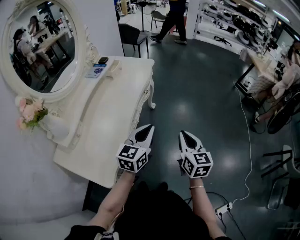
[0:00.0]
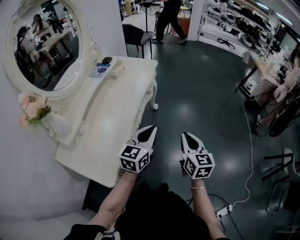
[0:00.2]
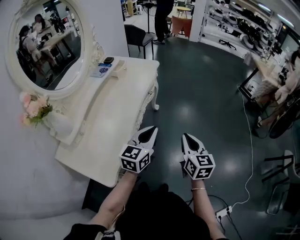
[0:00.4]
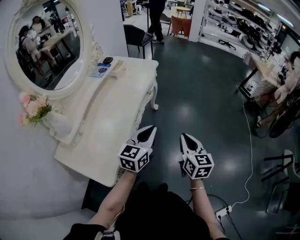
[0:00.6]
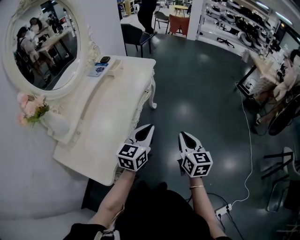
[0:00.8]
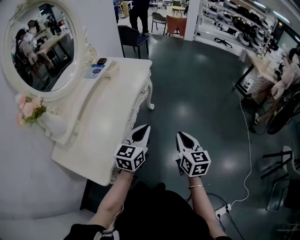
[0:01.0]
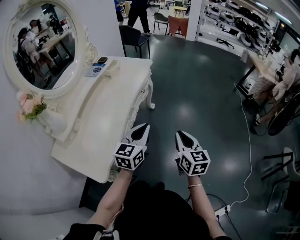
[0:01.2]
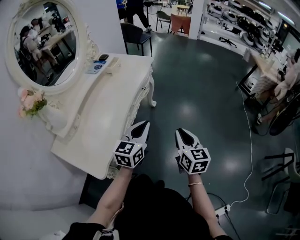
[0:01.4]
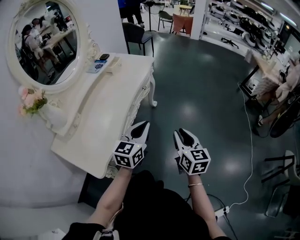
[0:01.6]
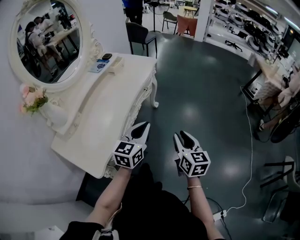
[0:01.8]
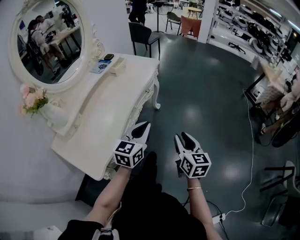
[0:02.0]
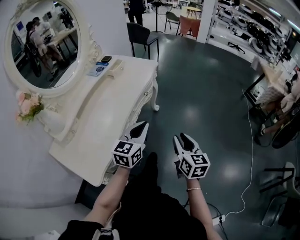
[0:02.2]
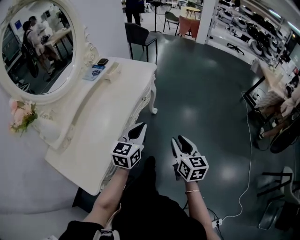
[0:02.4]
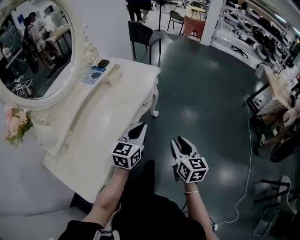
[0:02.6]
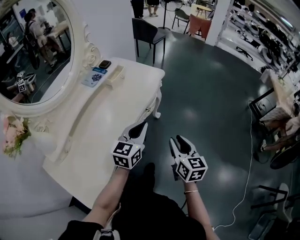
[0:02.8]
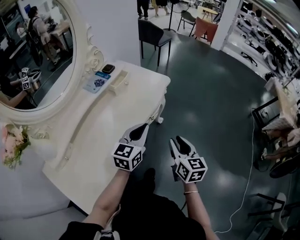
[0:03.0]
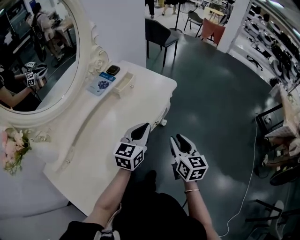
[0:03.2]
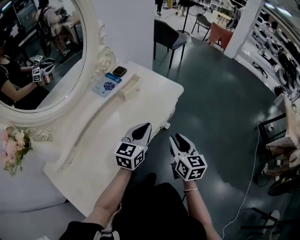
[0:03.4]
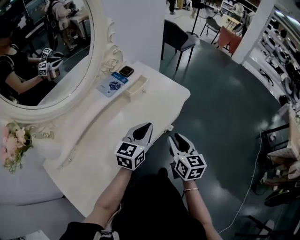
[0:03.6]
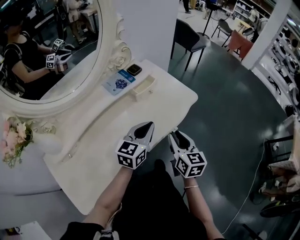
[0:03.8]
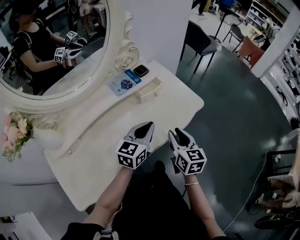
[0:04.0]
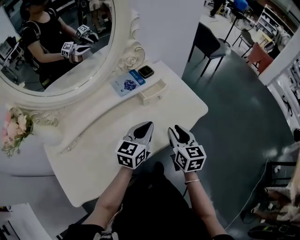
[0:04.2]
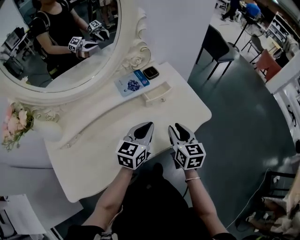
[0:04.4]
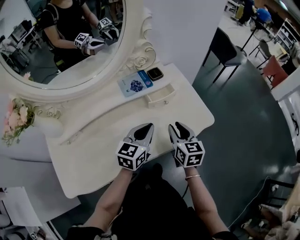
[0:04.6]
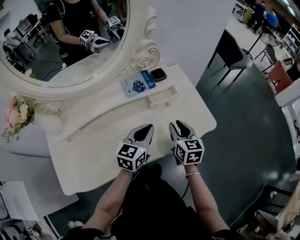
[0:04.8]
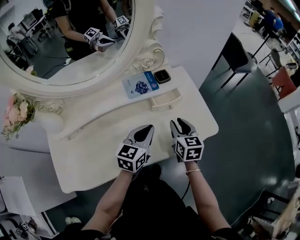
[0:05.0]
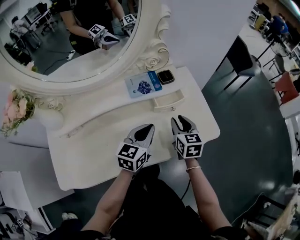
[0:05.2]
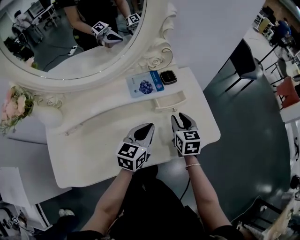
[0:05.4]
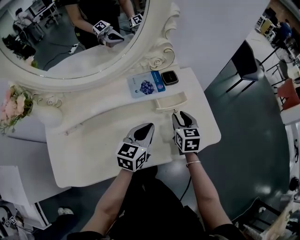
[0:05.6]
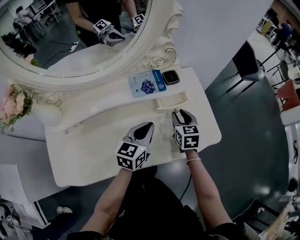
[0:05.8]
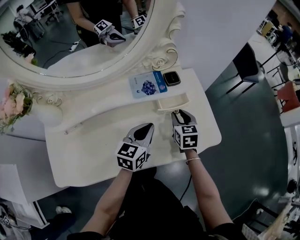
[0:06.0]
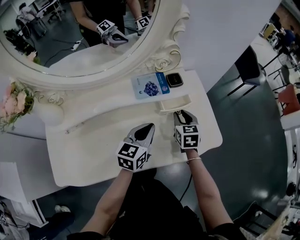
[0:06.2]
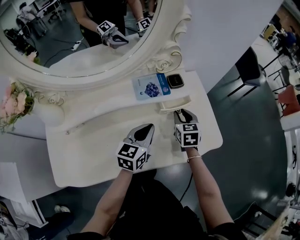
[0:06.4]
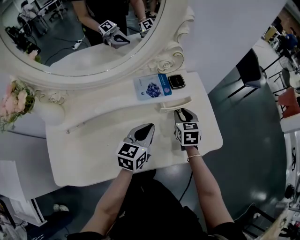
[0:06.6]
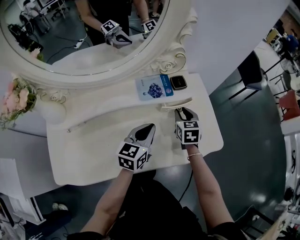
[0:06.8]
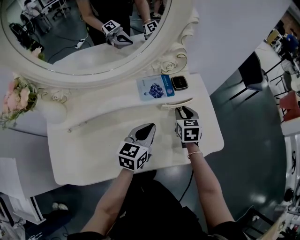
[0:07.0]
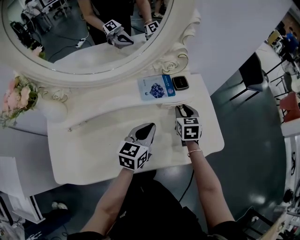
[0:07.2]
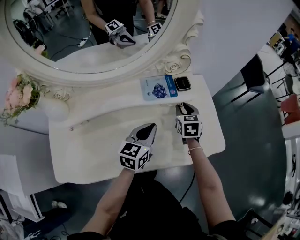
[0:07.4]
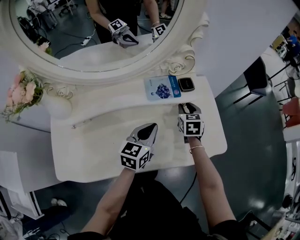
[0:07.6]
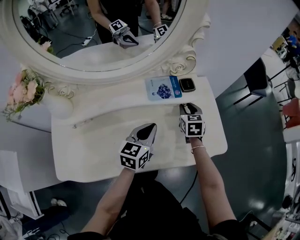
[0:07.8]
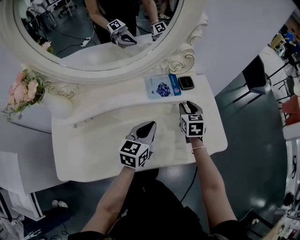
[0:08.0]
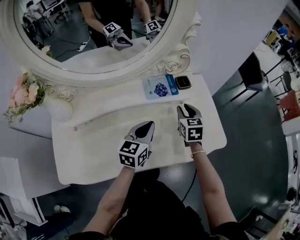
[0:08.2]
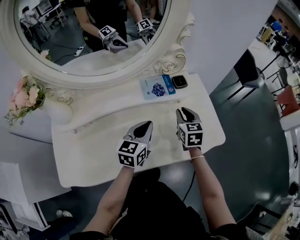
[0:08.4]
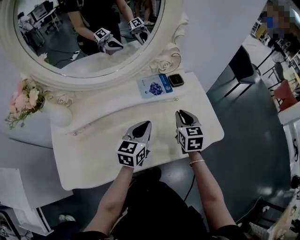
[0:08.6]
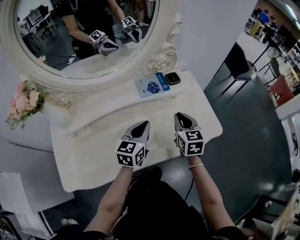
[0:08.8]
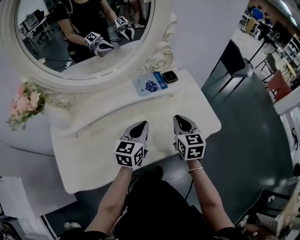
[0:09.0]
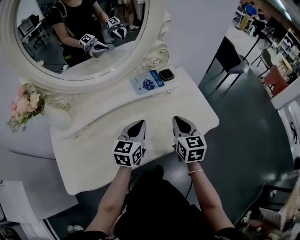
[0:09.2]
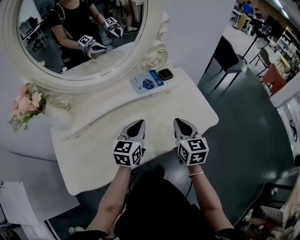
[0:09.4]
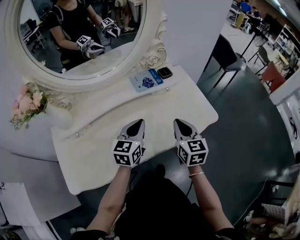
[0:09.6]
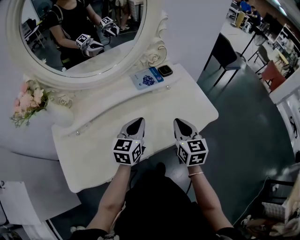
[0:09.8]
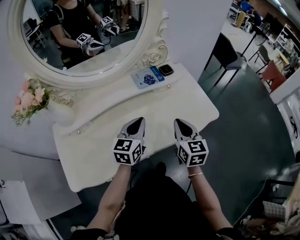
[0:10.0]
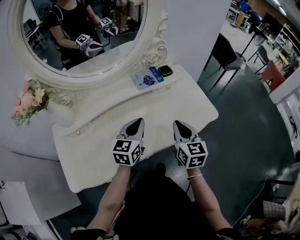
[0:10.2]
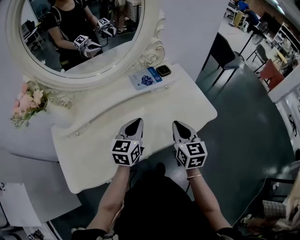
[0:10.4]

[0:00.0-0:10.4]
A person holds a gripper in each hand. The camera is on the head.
0:00.0 to 0:01.4: The grippers stay close to where they were, moving slightly.
0:01.4 to 0:03.0: The grippers both shift forward by about 25 cm. The right gripper opens its fingers.
0:03.0 to 0:04.4: The left gripper moves roughly 20 cm, and turns by some 30 degrees, while the right gripper changes place by about 30 cm, and changes its angle by some 30 degrees.
0:04.4 to 0:06.0: The left gripper moves forward, some 5 cm; the right gripper moves forward and downward, about 15 cm, and rotates roughly 20 degrees.
0:06.0 to 0:07.4: The right gripper moves forward, approximately 5 cm.
0:07.4 to 0:09.0: The right gripper goes approximately 15 cm backward and upward; the left gripper ends up about 5 cm from where it was.
0:09.0 to 0:10.4: The right gripper goes approximately 10 cm backward.

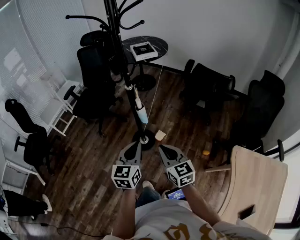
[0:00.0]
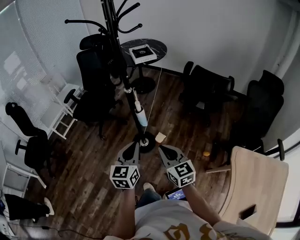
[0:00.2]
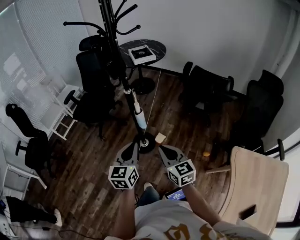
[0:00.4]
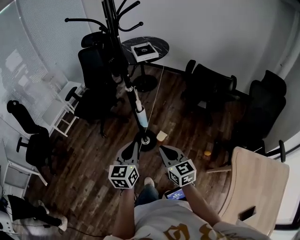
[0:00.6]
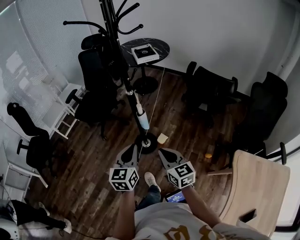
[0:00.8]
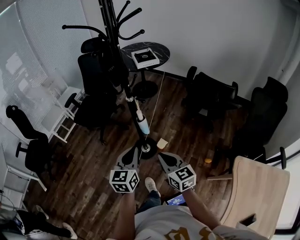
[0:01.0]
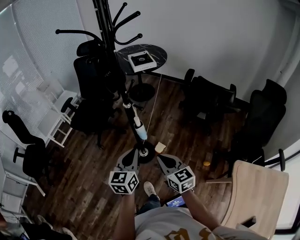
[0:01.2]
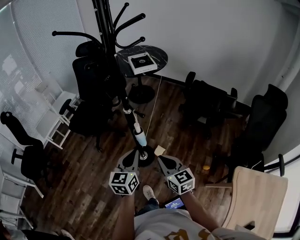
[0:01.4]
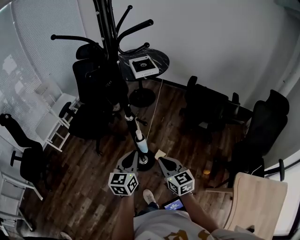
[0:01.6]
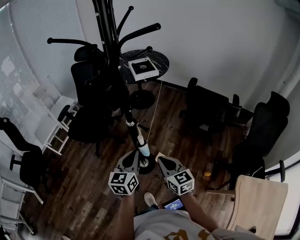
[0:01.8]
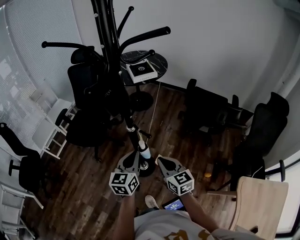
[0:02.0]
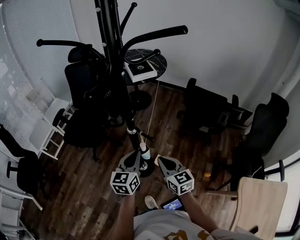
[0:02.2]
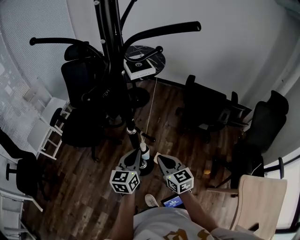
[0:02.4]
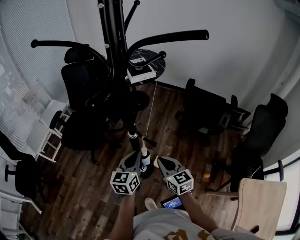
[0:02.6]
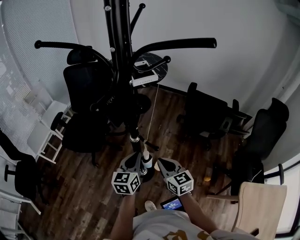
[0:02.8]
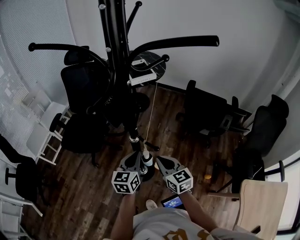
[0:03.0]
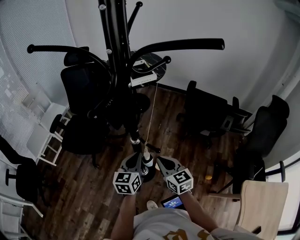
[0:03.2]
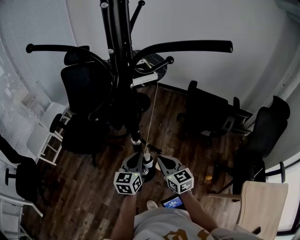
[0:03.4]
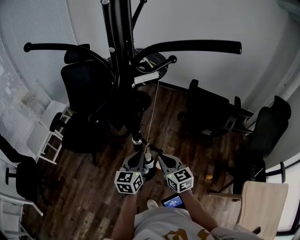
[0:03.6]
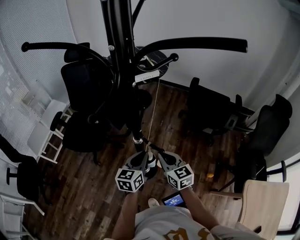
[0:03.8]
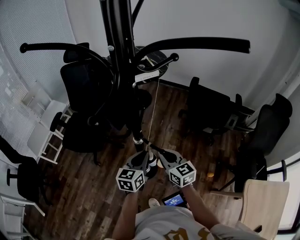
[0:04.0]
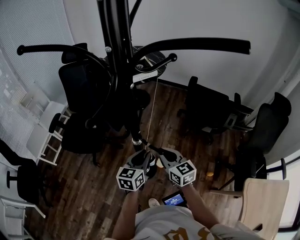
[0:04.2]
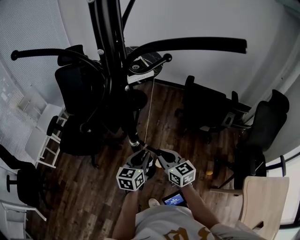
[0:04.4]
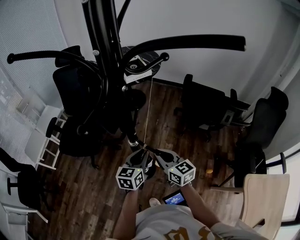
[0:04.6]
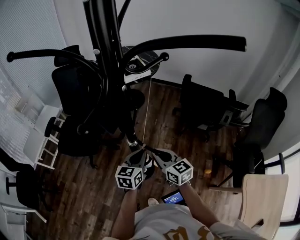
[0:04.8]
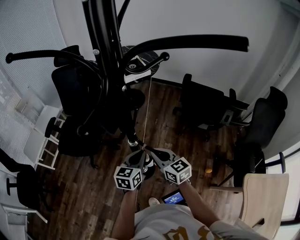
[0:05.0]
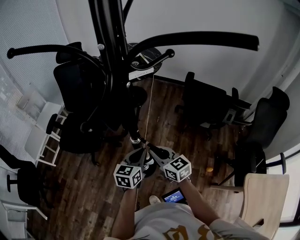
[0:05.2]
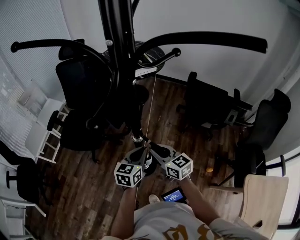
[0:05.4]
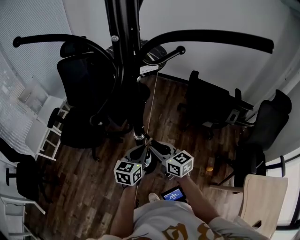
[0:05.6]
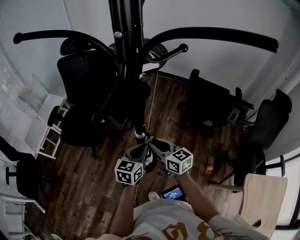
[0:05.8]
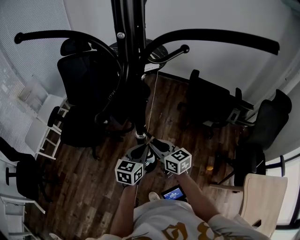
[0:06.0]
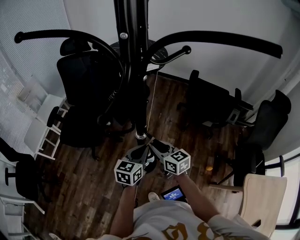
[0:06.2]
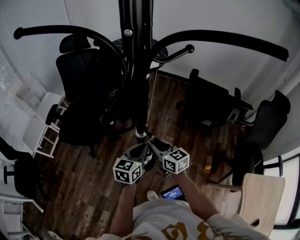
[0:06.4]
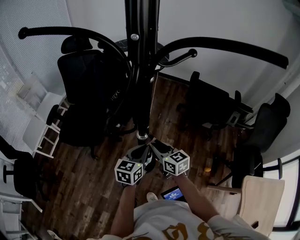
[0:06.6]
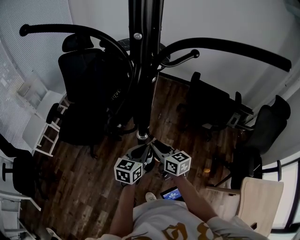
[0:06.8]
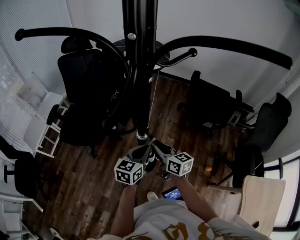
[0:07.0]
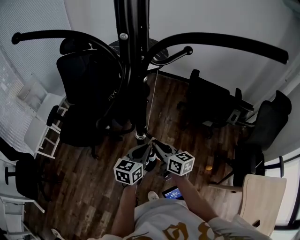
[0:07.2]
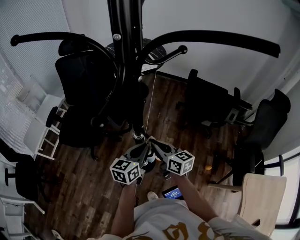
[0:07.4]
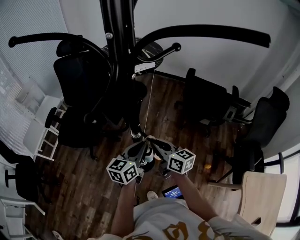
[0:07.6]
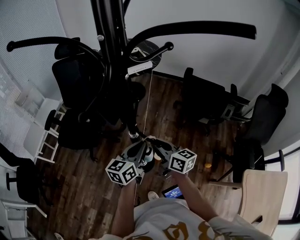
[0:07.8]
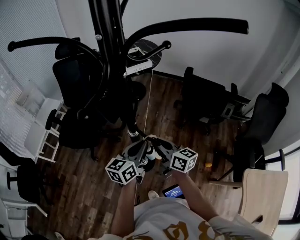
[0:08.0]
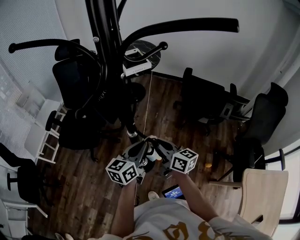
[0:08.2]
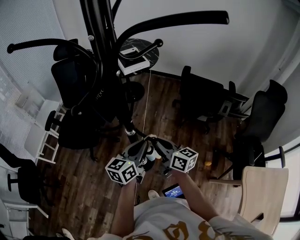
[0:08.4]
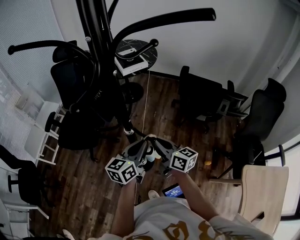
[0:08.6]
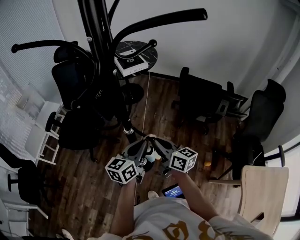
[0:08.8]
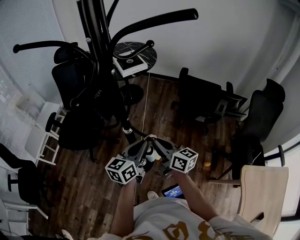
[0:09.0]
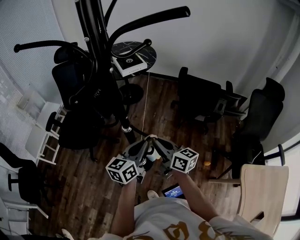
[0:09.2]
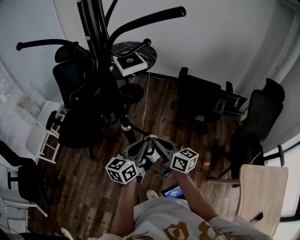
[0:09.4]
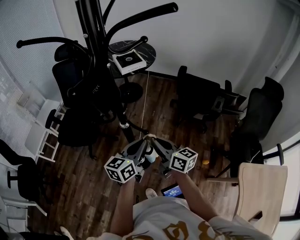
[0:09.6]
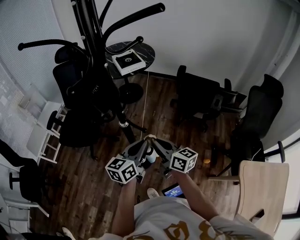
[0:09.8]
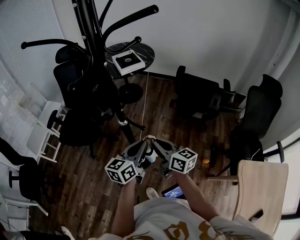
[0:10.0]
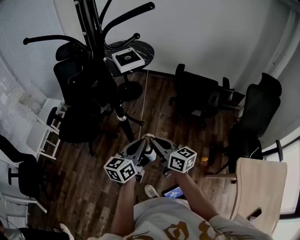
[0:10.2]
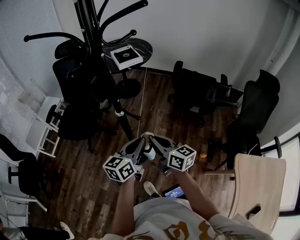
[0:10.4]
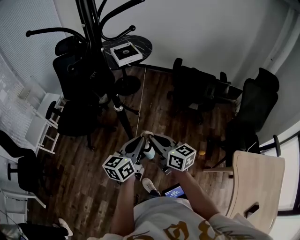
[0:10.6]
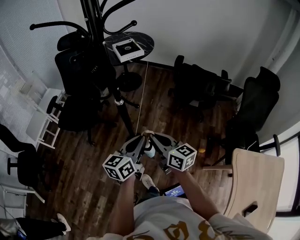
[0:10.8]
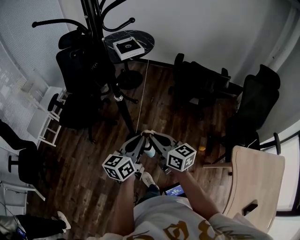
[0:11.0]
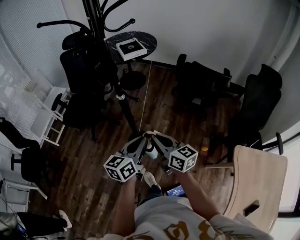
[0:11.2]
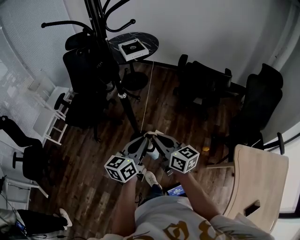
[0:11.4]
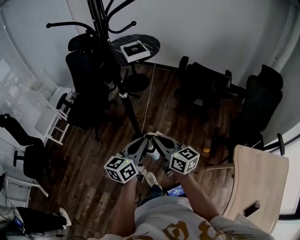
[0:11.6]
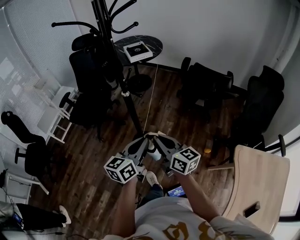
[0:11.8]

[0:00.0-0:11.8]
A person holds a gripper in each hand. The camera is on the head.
0:00.0 to 0:01.4: The two grippers go approximately 10 cm forward.
0:01.4 to 0:03.0: Both grippers travel together forward, roughly 20 cm.
0:03.0 to 0:04.4: The left gripper ends up about 5 cm from where it was.
0:04.4 to 0:06.0: The right gripper goes about 5 cm to the left.
0:06.0 to 0:07.4: There are only small adjustments of the grippers.
0:07.4 to 0:08.8: The right gripper moves approximately 5 cm; the left gripper shifts by roughly 5 cm.
0:08.8 to 0:10.4: The grippers both shift backward by roughly 10 cm.
0:10.4 to 0:11.8: Both grippers move backward, roughly 15 cm.

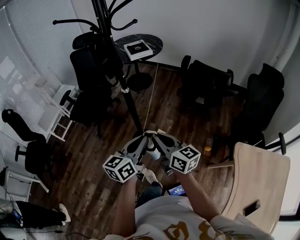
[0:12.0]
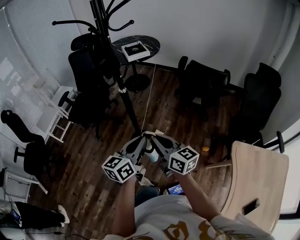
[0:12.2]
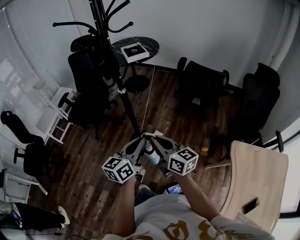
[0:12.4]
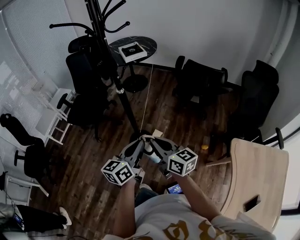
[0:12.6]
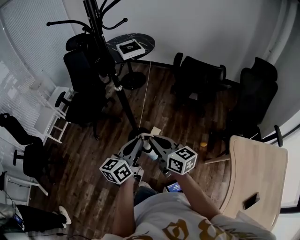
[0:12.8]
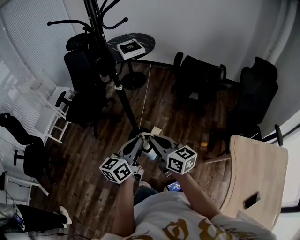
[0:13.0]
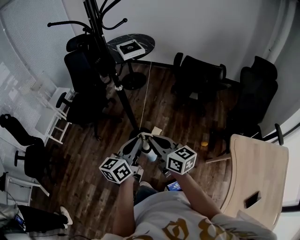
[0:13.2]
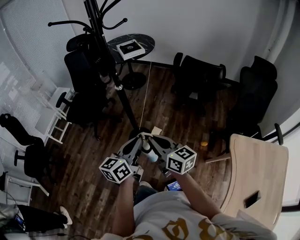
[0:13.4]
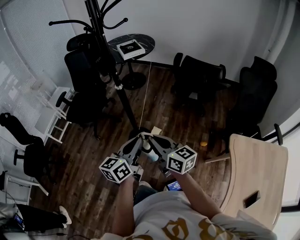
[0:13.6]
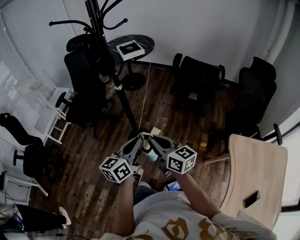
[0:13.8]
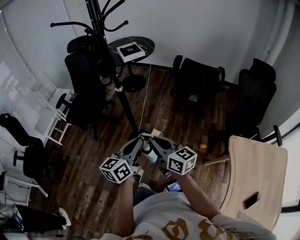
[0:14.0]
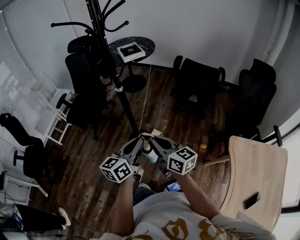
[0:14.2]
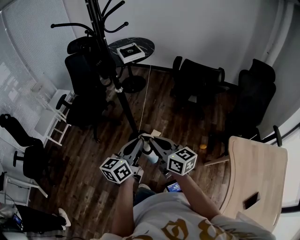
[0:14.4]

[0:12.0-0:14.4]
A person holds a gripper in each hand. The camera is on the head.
0:12.0 to 0:13.2: There are only small adjustments of the grippers.
0:13.2 to 0:14.4: Both grippers stay about where they are.
